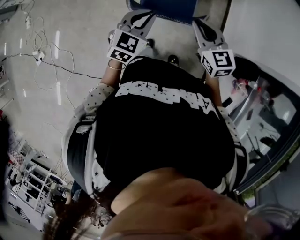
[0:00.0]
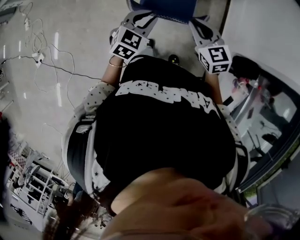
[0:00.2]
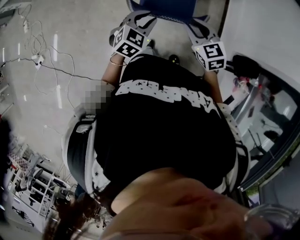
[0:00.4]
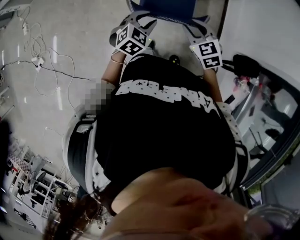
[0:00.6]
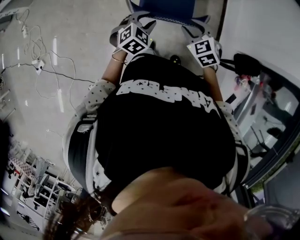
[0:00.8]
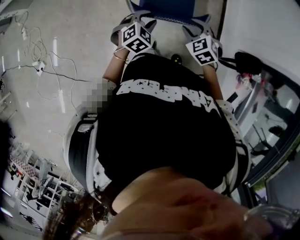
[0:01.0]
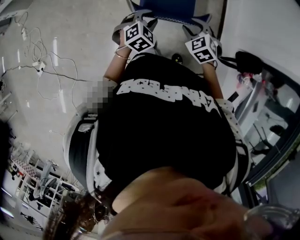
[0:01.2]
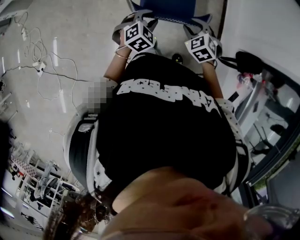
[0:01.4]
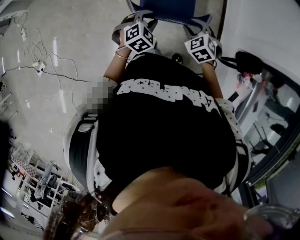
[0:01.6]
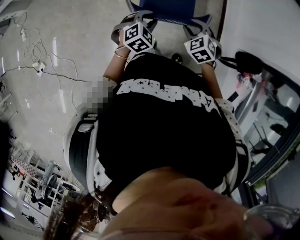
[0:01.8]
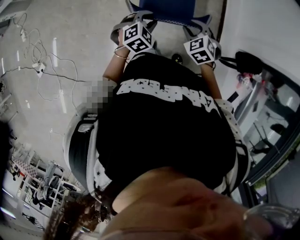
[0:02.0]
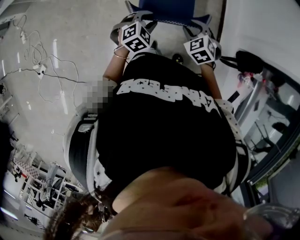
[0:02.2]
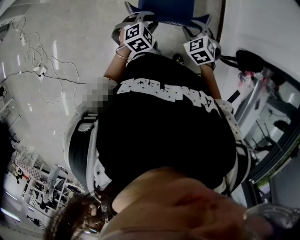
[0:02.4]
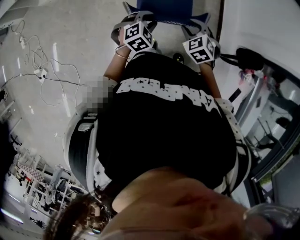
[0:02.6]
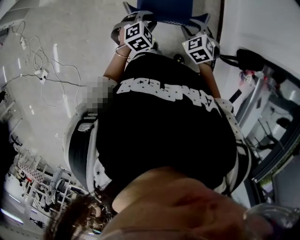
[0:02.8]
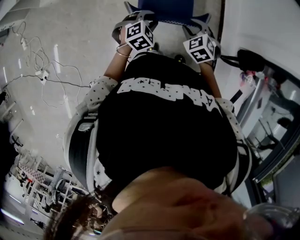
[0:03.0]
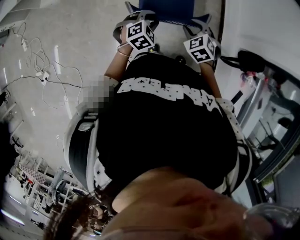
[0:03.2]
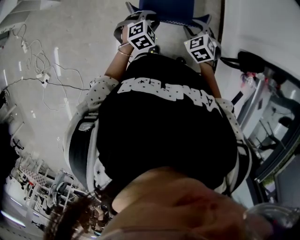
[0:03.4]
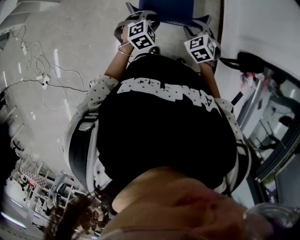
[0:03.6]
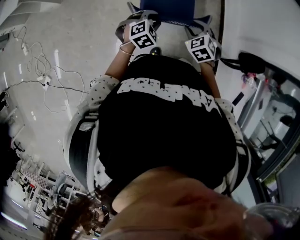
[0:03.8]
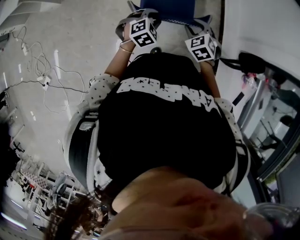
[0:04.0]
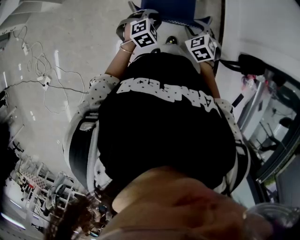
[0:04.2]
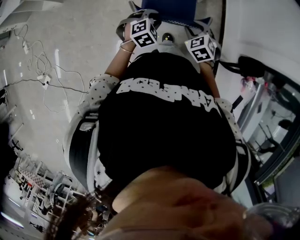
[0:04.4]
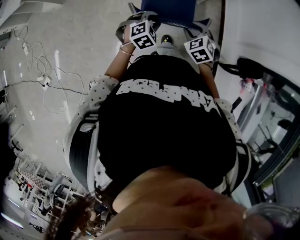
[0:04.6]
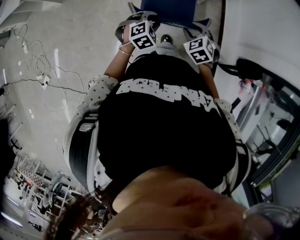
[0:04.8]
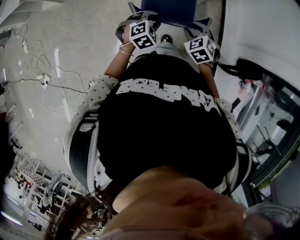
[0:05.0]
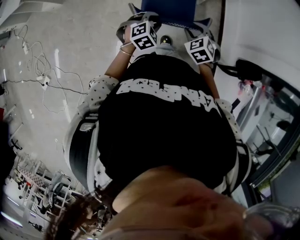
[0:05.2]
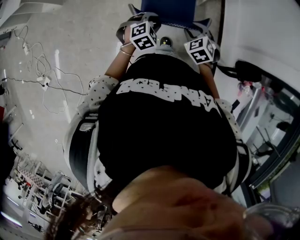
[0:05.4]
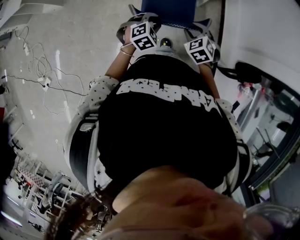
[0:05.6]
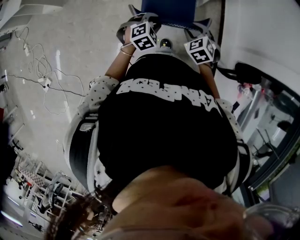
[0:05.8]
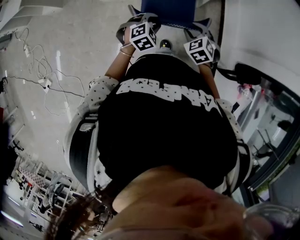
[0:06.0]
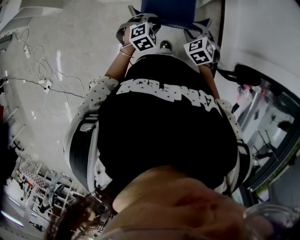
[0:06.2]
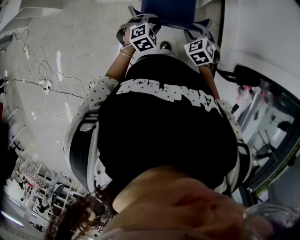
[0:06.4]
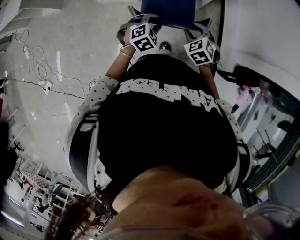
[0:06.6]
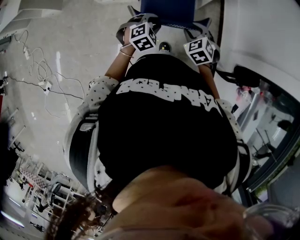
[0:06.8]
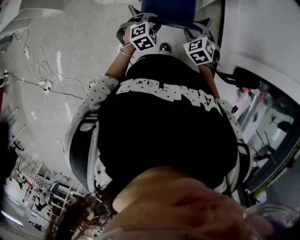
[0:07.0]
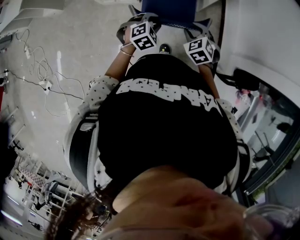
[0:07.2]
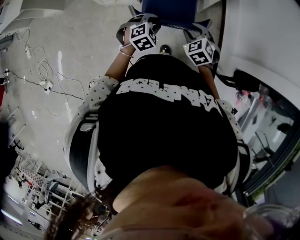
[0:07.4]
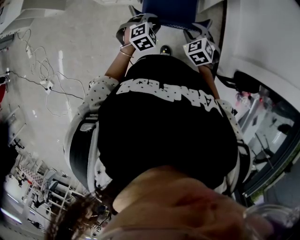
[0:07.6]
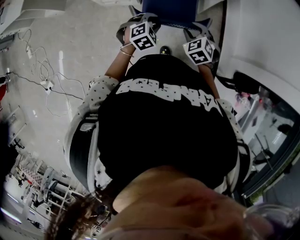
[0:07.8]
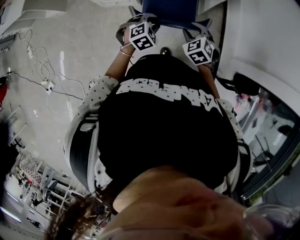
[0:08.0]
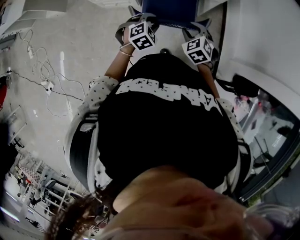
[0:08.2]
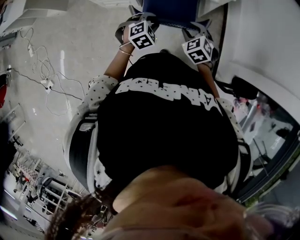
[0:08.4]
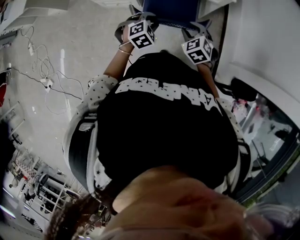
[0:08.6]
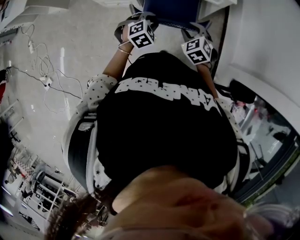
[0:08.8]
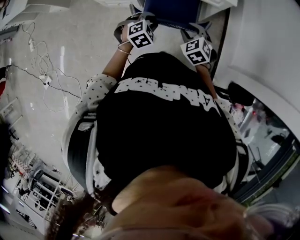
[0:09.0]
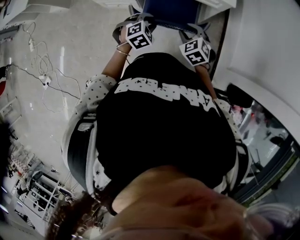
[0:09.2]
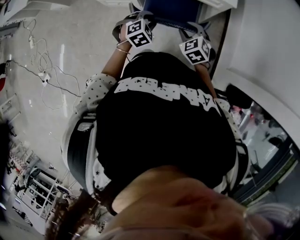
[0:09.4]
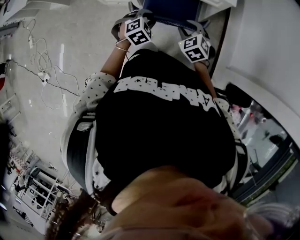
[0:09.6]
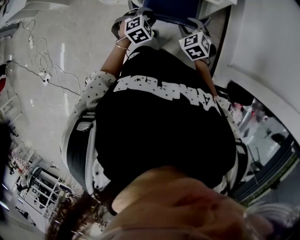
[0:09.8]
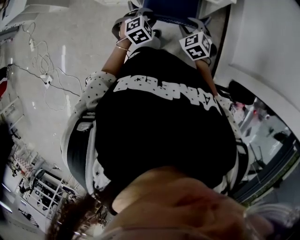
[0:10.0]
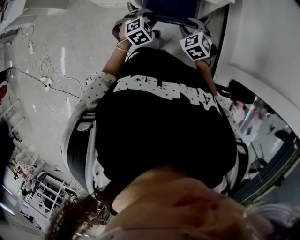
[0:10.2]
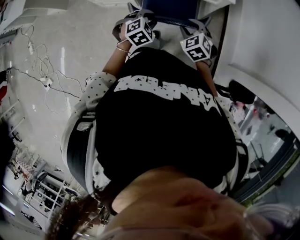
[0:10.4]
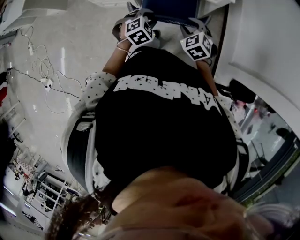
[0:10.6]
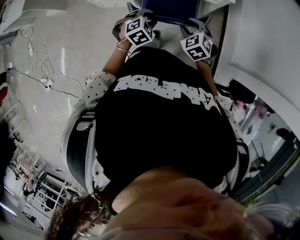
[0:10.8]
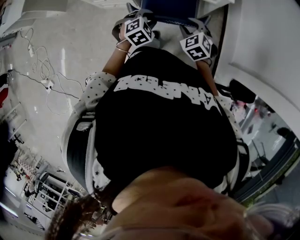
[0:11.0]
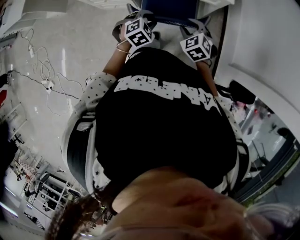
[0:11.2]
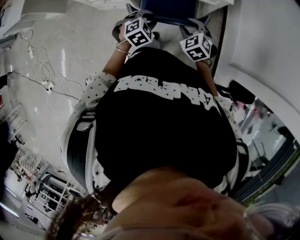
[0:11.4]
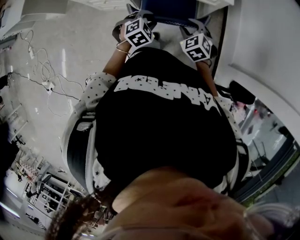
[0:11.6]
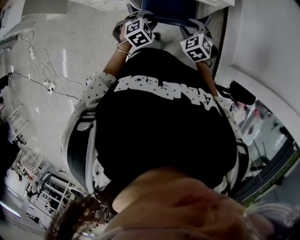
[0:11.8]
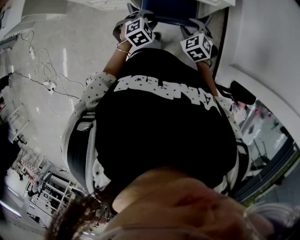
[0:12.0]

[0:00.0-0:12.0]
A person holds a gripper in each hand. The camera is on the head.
0:00.0 to 0:01.6: Both grippers travel together downward, some 15 cm. The left gripper changes its angle by approximately 30 degrees, and opens. Meanwhile the right gripper swivels some 40 degrees, and opens.
0:01.6 to 0:03.0: The grippers stay close to where they were, moving slightly.
0:03.0 to 0:04.4: There are only small adjustments of the grippers.
0:04.4 to 0:06.0: The right gripper shifts about 5 cm forward, while the left gripper ends up about 5 cm from where it was.
0:06.0 to 0:07.6: The two grippers go roughly 5 cm forward.
0:07.6 to 0:09.0: The grippers both shift forward by about 5 cm.
0:09.0 to 0:12.0: The grippers stay close to where they were, moving slightly.

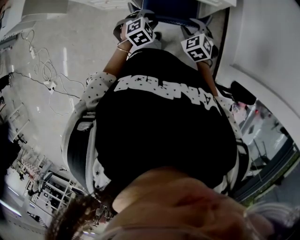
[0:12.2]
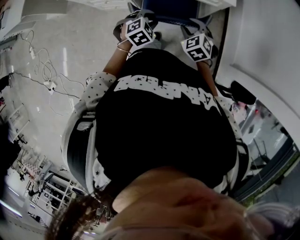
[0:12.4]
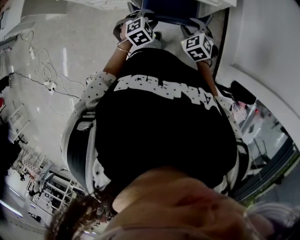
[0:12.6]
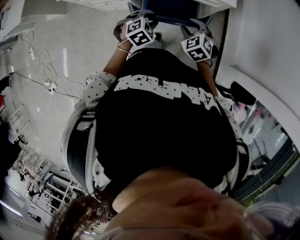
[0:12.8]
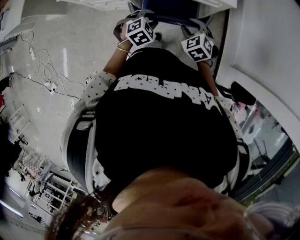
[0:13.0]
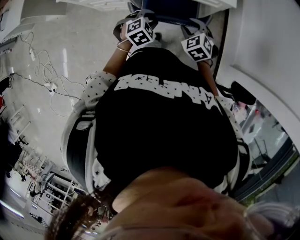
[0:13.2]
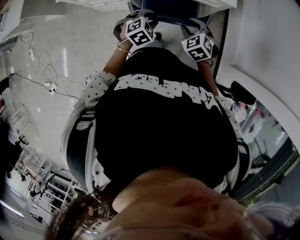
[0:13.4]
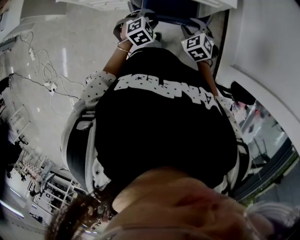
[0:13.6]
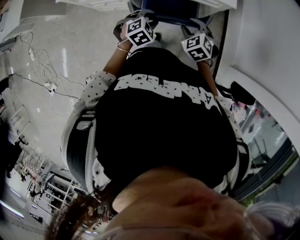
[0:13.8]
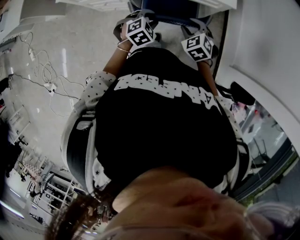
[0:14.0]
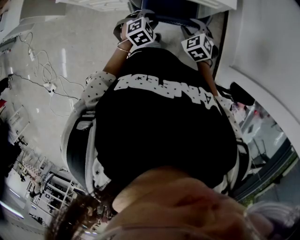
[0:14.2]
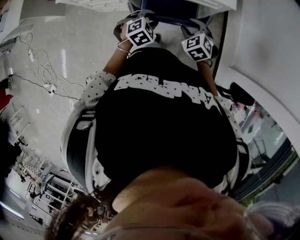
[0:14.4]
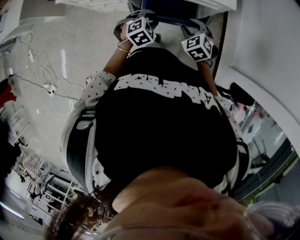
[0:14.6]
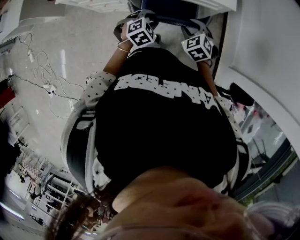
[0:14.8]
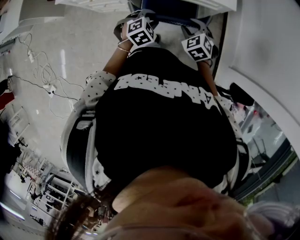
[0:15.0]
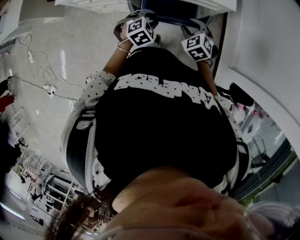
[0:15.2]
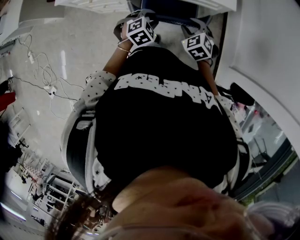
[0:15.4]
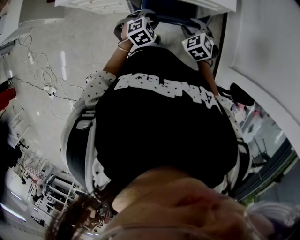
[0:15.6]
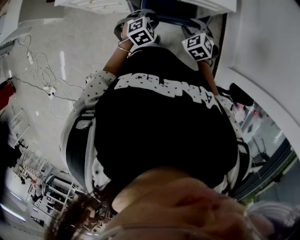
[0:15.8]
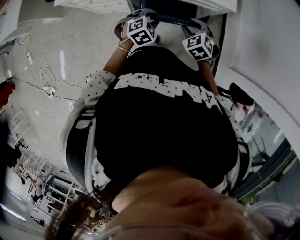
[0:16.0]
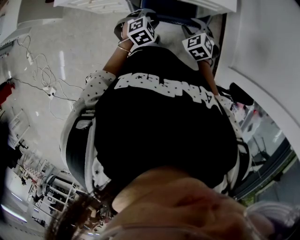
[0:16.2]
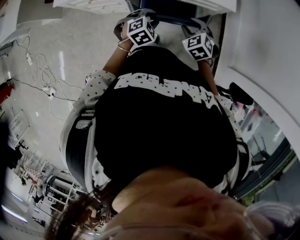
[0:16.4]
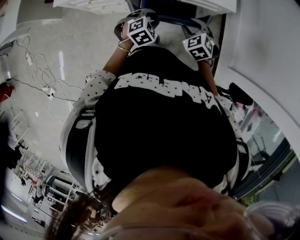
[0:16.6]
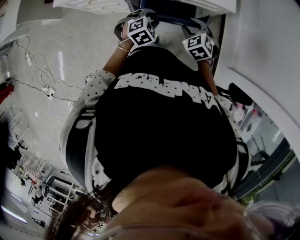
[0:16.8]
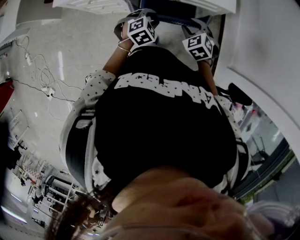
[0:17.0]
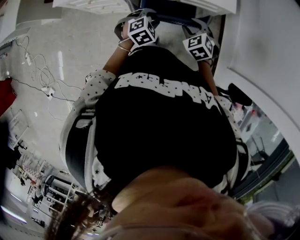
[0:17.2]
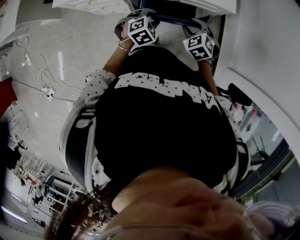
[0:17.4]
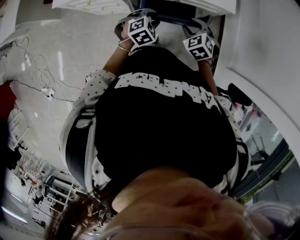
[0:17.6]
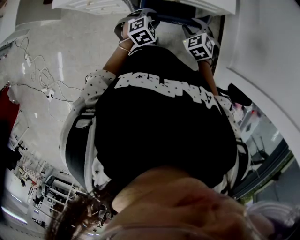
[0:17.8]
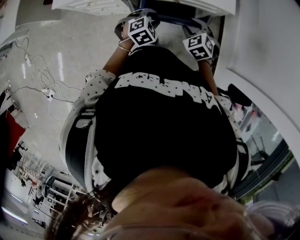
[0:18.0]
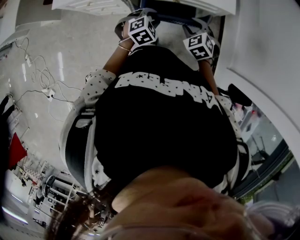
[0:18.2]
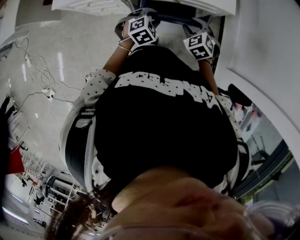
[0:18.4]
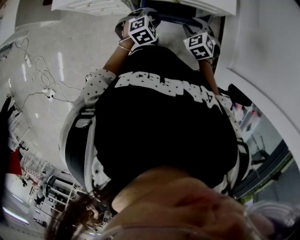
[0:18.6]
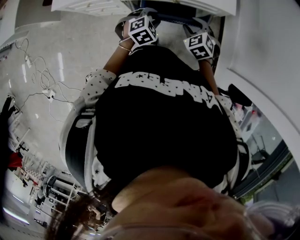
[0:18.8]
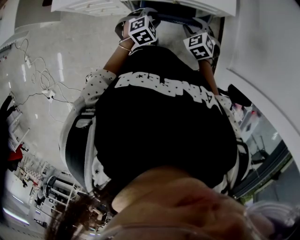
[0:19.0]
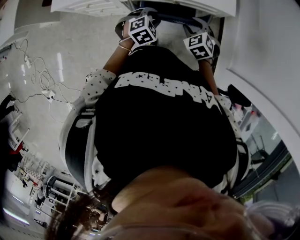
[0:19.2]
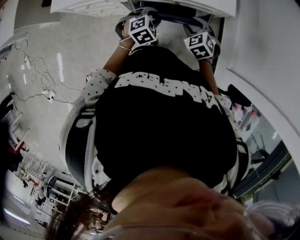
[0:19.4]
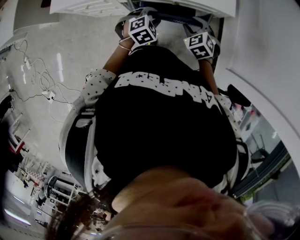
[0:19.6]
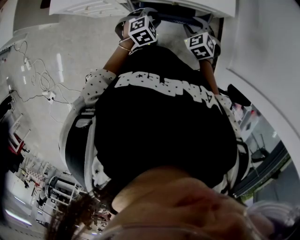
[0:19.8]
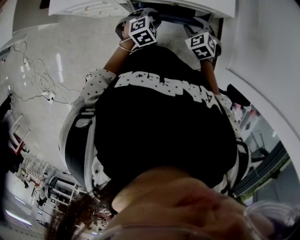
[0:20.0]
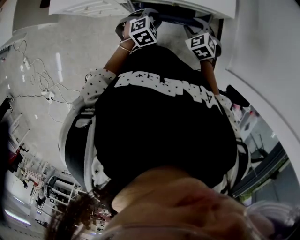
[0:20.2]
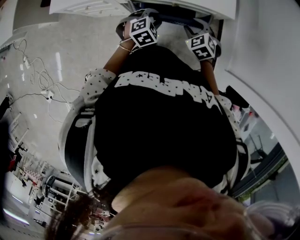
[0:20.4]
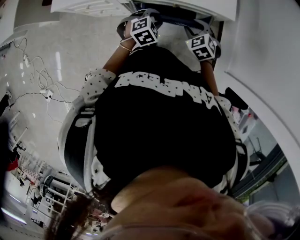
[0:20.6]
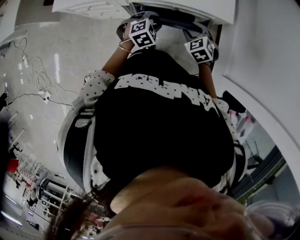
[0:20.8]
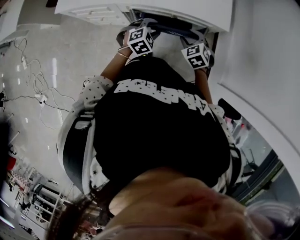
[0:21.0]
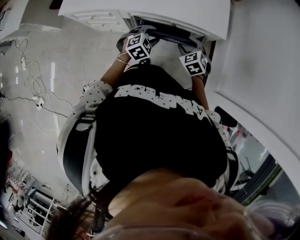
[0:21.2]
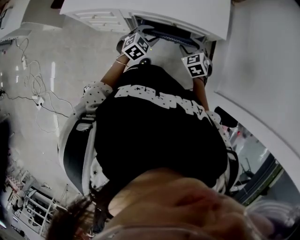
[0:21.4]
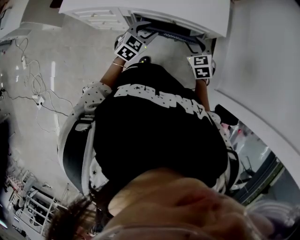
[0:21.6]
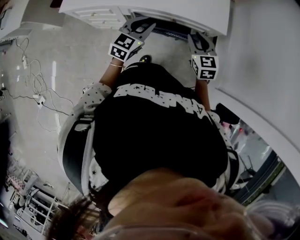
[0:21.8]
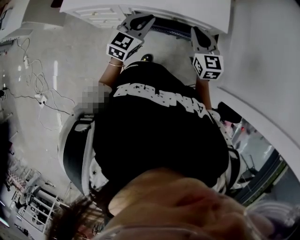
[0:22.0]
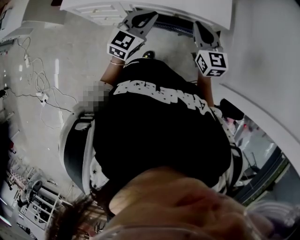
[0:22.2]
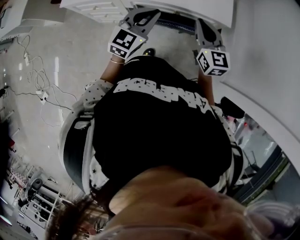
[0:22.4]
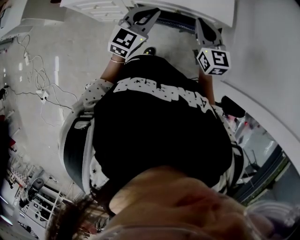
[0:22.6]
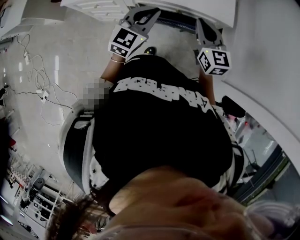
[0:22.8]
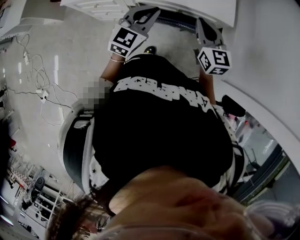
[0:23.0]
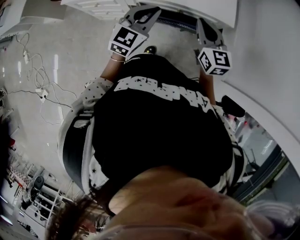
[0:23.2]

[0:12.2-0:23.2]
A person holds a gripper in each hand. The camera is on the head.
0:12.2 to 0:17.0: The grippers stay close to where they were, moving slightly.
0:17.0 to 0:20.0: The grippers stay close to where they were, moving slightly.
0:20.0 to 0:21.6: The right gripper shifts by roughly 5 cm, while the left gripper shifts about 5 cm upward, and rotates roughly 30 degrees.
0:21.6 to 0:23.2: The two grippers go about 10 cm upward. The left gripper closes its fingers. The right gripper turns by about 30 degrees, and closes.

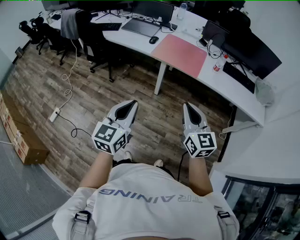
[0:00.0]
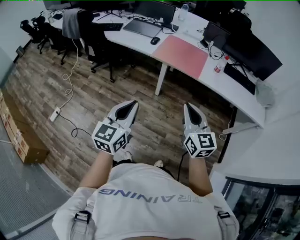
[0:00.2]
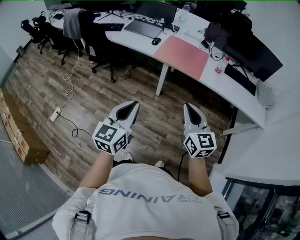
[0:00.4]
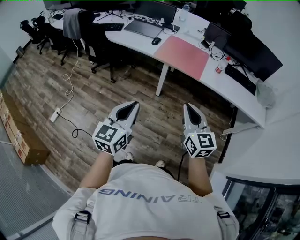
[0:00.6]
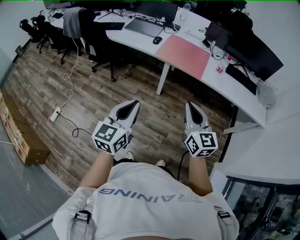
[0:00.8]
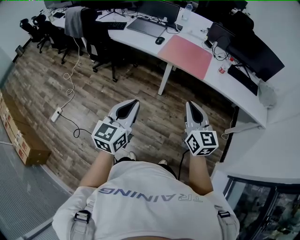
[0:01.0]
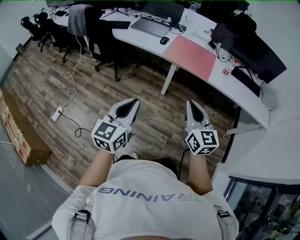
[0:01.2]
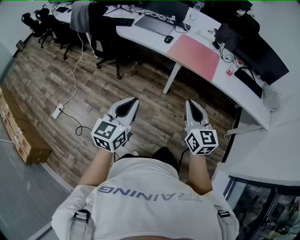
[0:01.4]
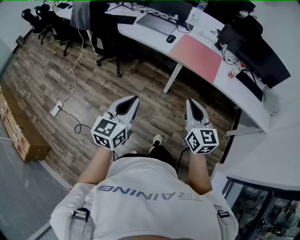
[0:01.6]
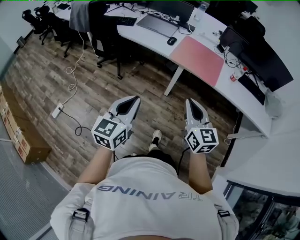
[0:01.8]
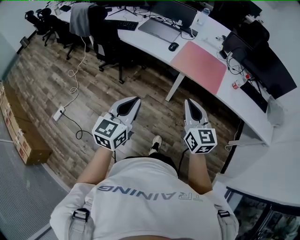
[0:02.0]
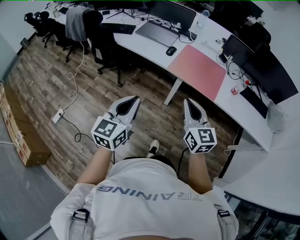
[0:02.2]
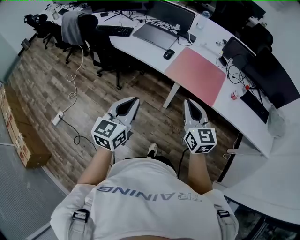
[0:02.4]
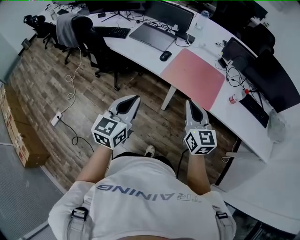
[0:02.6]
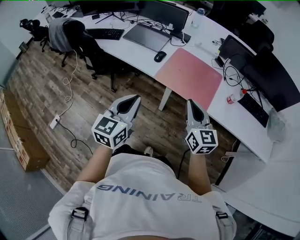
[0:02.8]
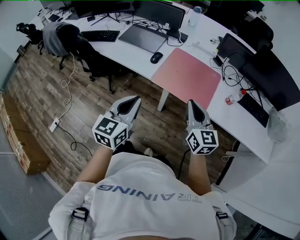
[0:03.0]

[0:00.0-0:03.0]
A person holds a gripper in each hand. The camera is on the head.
0:00.0 to 0:01.6: The two grippers go roughly 15 cm to the left.
0:01.6 to 0:03.0: Both grippers move forward and to the right, roughly 35 cm.
